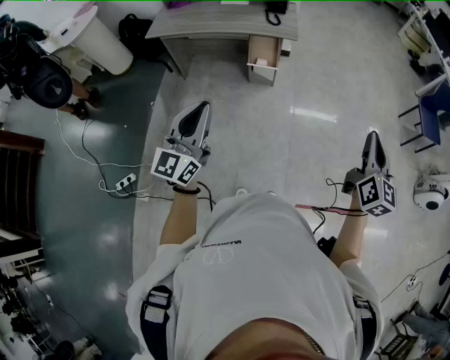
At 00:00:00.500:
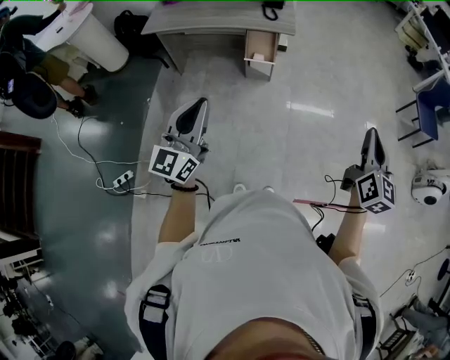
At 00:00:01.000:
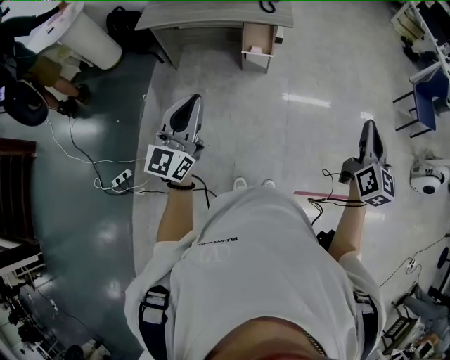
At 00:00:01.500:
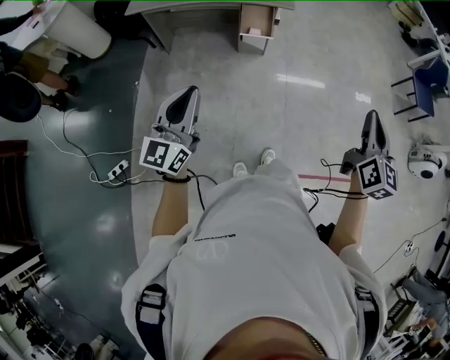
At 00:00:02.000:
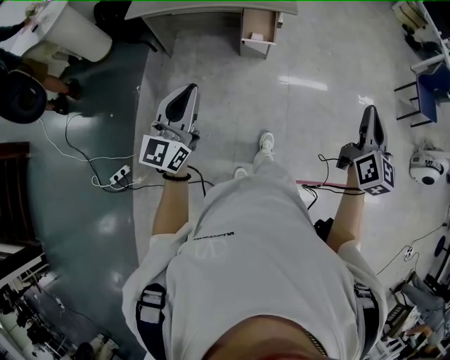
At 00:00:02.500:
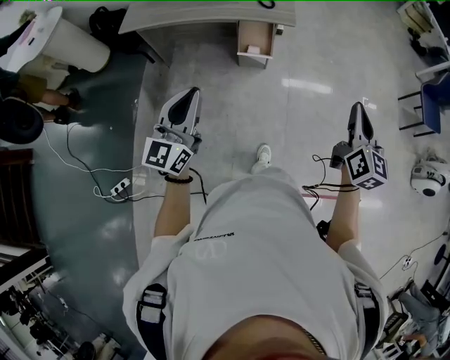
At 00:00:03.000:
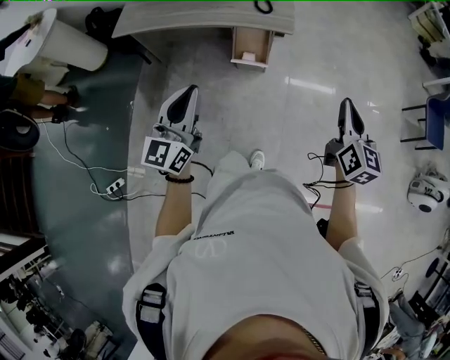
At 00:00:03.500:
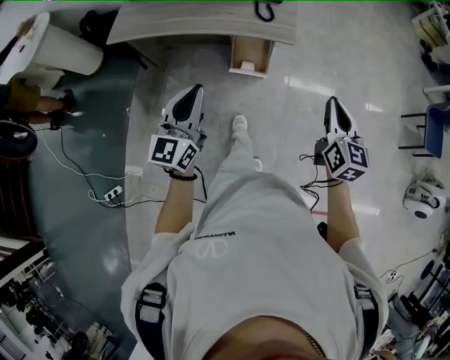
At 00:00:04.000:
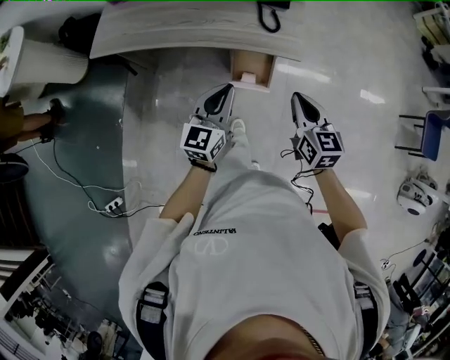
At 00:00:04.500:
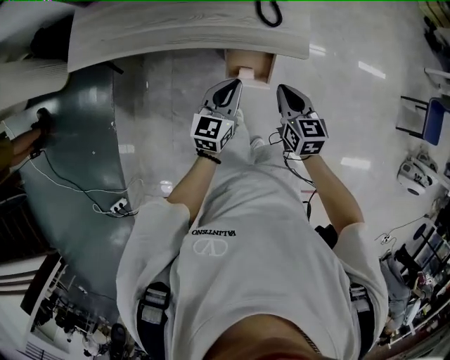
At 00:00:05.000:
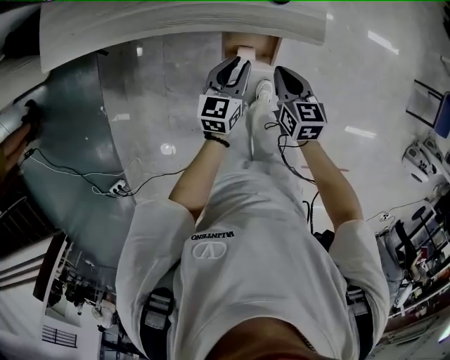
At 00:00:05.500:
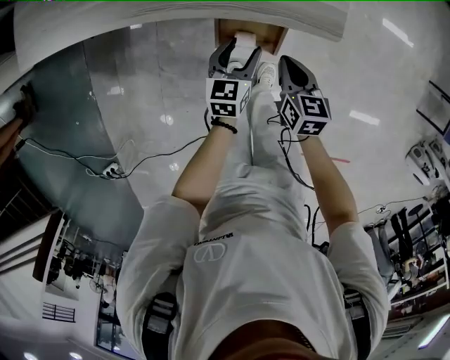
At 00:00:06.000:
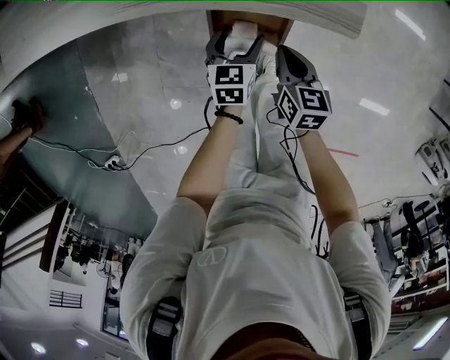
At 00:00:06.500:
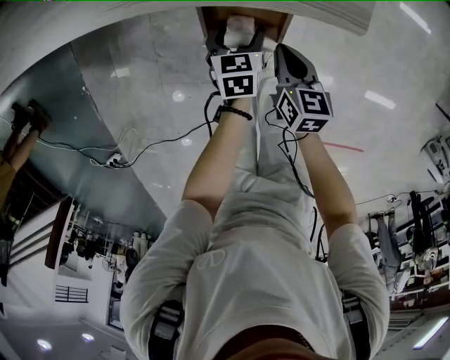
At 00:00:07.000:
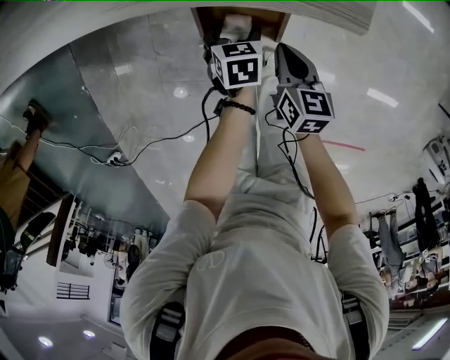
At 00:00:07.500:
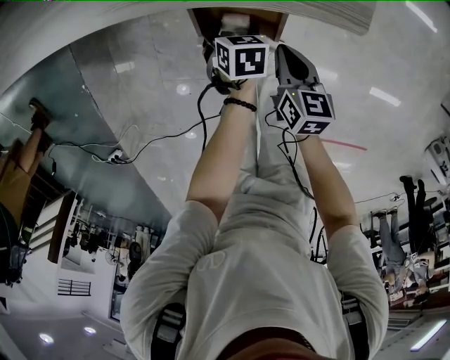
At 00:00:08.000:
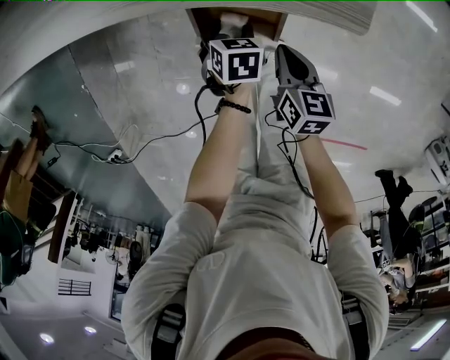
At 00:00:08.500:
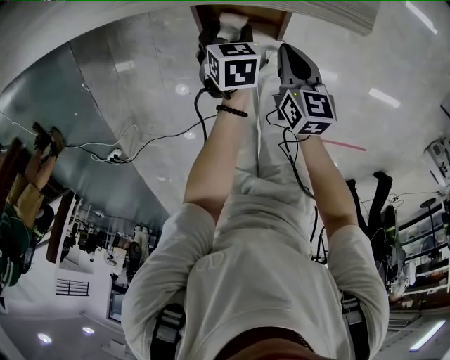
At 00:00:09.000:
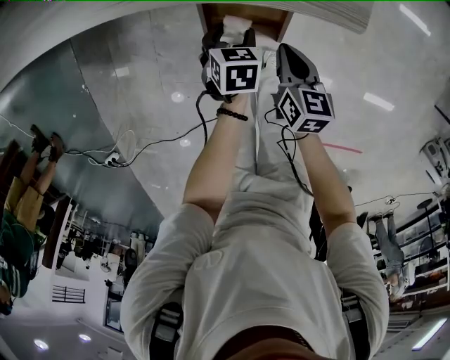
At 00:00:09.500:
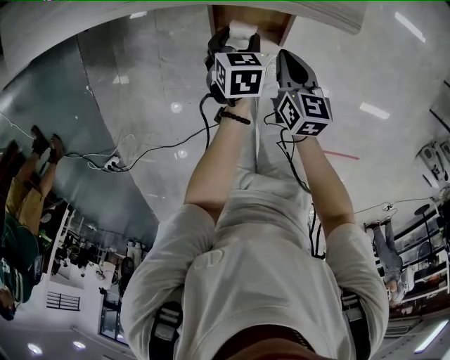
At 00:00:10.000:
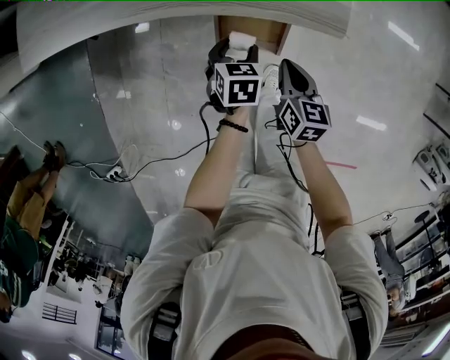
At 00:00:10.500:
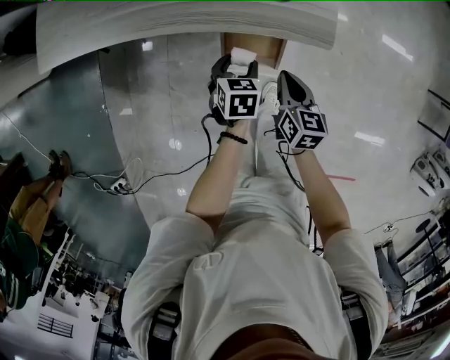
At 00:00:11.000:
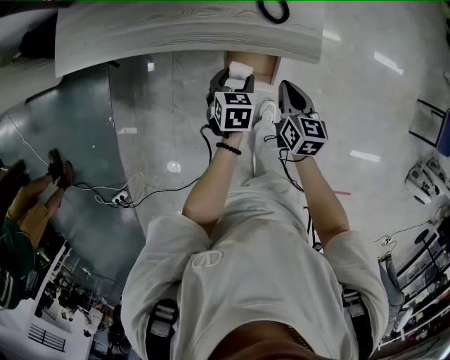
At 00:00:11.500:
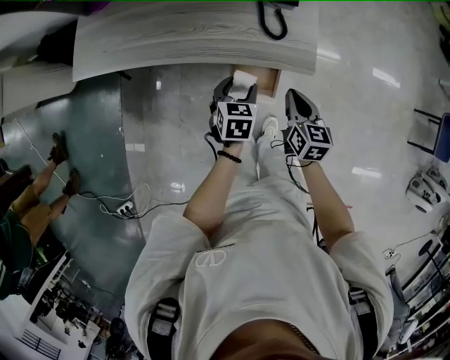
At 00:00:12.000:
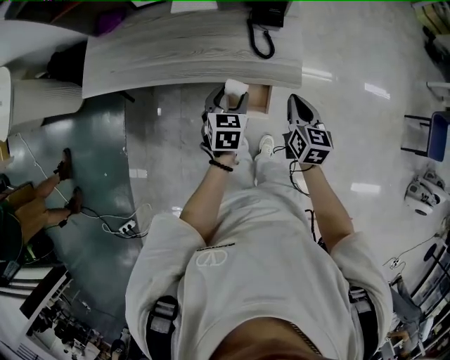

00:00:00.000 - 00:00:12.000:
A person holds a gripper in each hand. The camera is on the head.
00:00:00.000 - 00:00:02.000: Both grippers move to the left, some 10 cm.
00:00:02.000 - 00:00:04.000: The two grippers travel together, forward, about 40 cm. The right gripper moves downward, some 20 cm, and turns by about 40 degrees.
00:00:04.000 - 00:00:06.000: The grippers both shift downward by about 40 cm. The left gripper tilts its fingers some 40 degrees downward, and opens up, while the right gripper changes its angle by some 30 degrees.
00:00:06.000 - 00:00:08.000: The left gripper is displaced downward by approximately 5 cm, and changes its angle by about 30 degrees.
00:00:08.000 - 00:00:10.000: The two grippers go about 10 cm upward.
00:00:10.000 - 00:00:12.000: The two grippers go about 25 cm upward. The left gripper turns by roughly 20 degrees.

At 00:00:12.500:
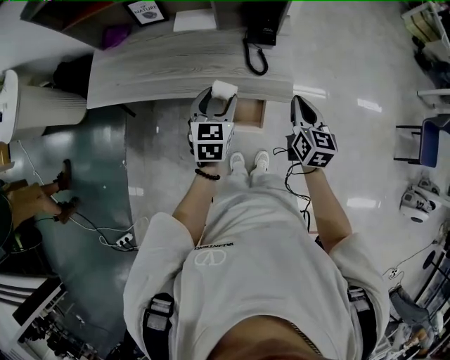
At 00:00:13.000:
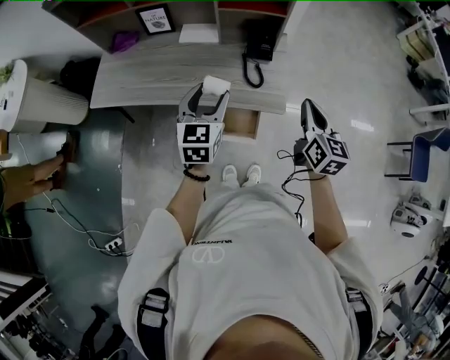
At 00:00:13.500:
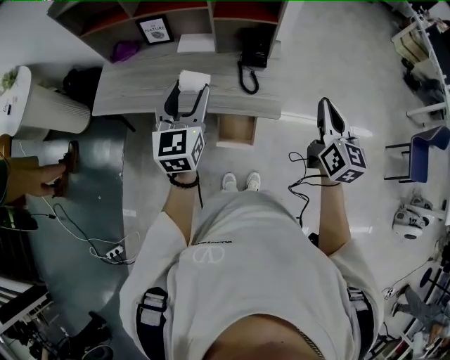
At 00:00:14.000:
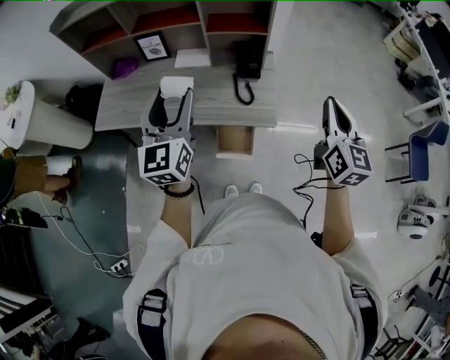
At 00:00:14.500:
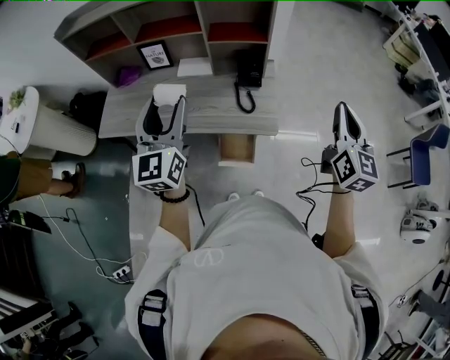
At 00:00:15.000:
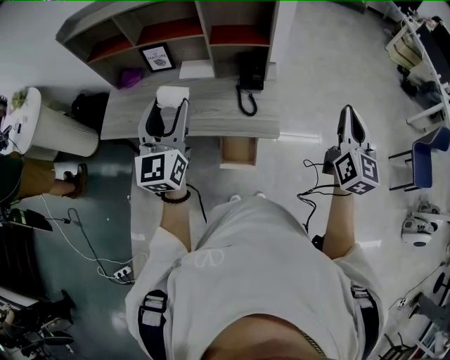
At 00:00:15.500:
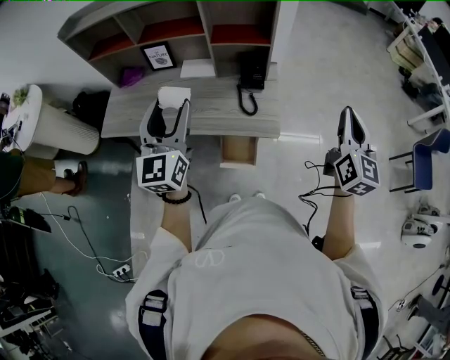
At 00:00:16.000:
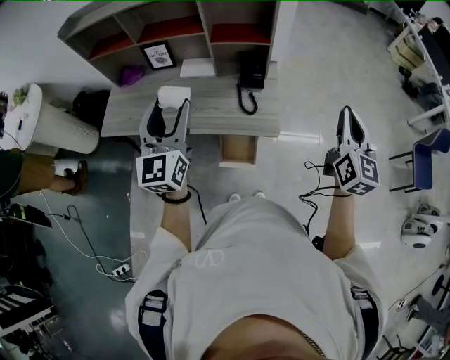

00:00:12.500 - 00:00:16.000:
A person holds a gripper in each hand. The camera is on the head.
00:00:12.500 - 00:00:14.500: The left gripper heads upward, covering roughly 25 cm, and tilts its fingers some 40 degrees upward. Meanwhile the right gripper is displaced upward and to the right by roughly 25 cm, and rotates some 20 degrees.
00:00:14.500 - 00:00:16.000: The grippers make only small movements.

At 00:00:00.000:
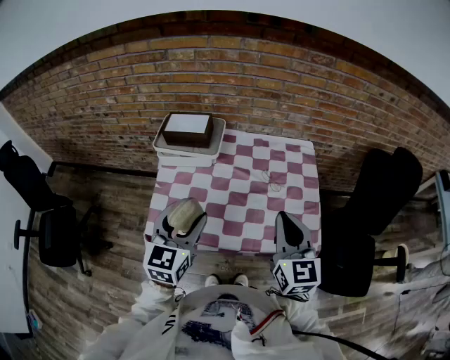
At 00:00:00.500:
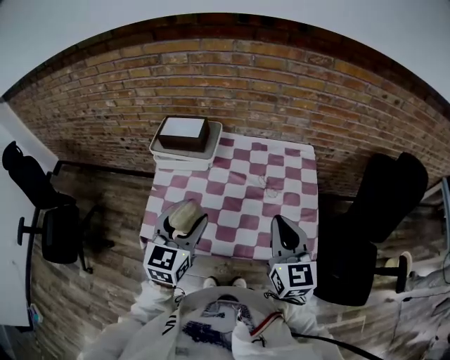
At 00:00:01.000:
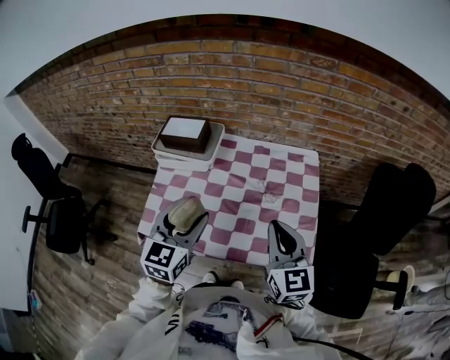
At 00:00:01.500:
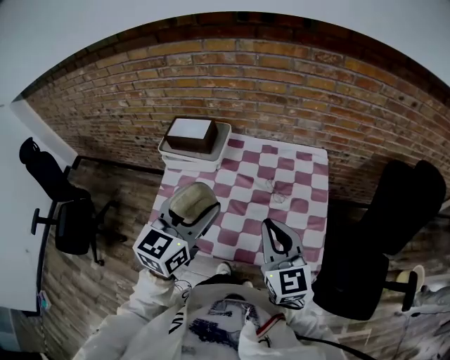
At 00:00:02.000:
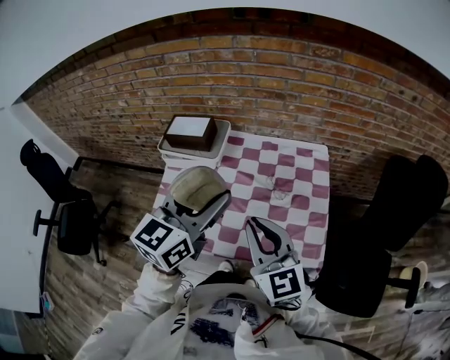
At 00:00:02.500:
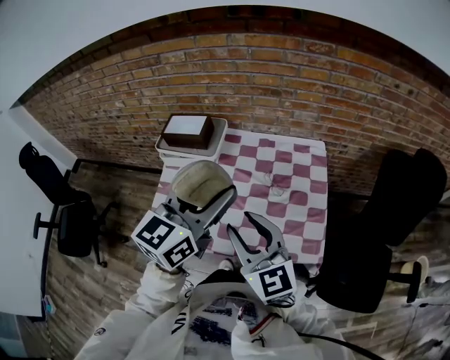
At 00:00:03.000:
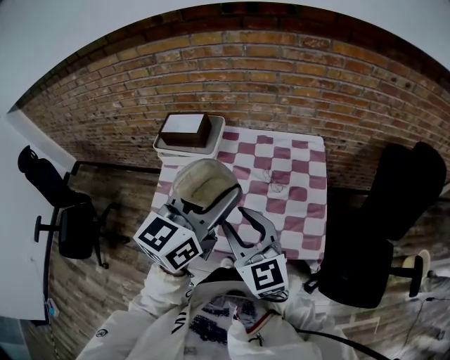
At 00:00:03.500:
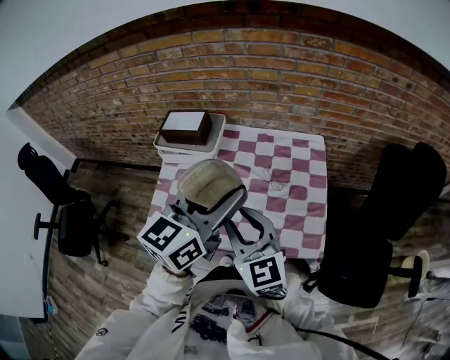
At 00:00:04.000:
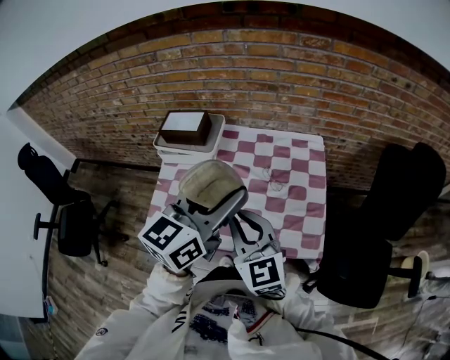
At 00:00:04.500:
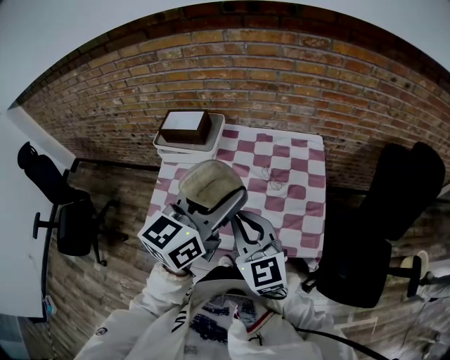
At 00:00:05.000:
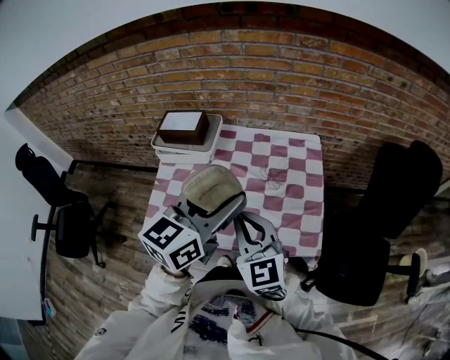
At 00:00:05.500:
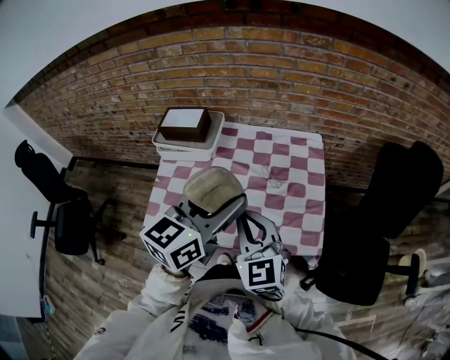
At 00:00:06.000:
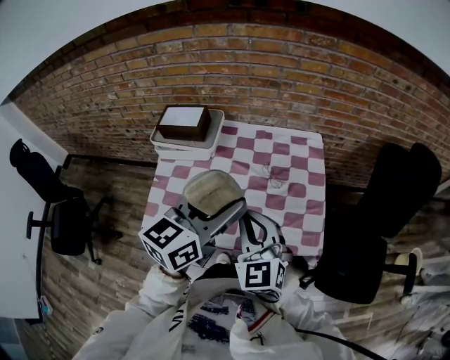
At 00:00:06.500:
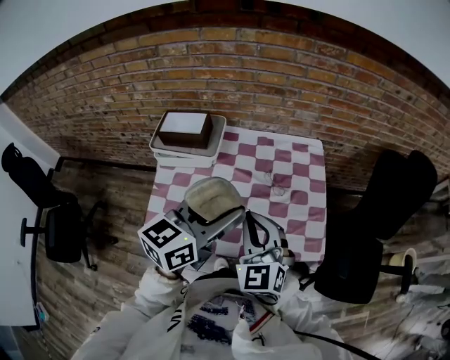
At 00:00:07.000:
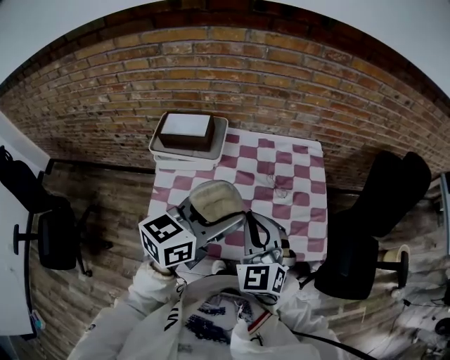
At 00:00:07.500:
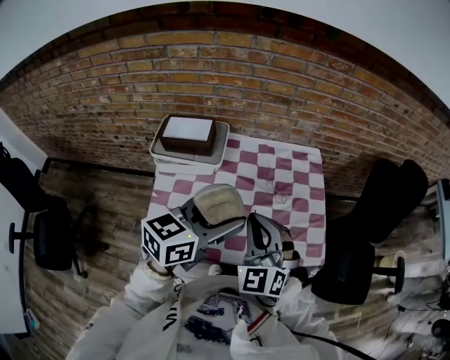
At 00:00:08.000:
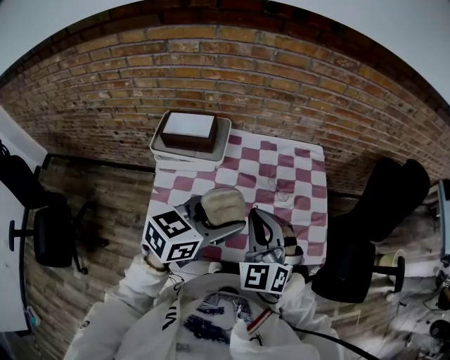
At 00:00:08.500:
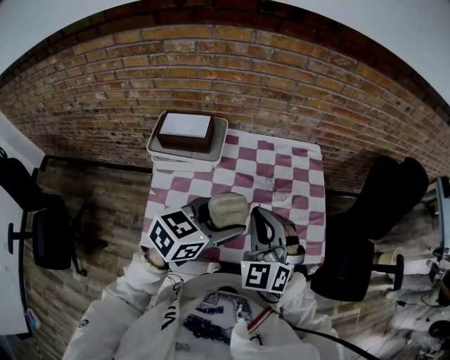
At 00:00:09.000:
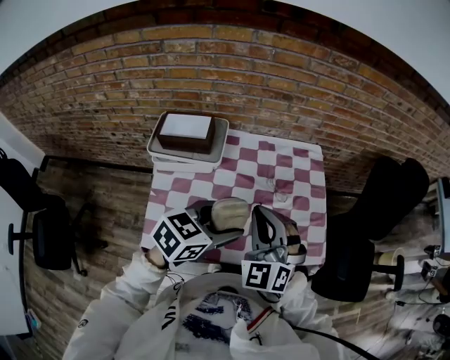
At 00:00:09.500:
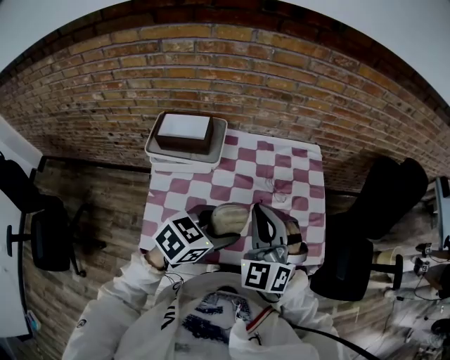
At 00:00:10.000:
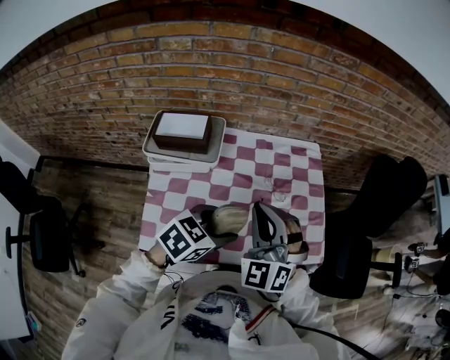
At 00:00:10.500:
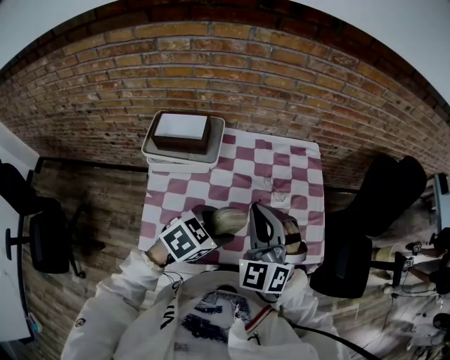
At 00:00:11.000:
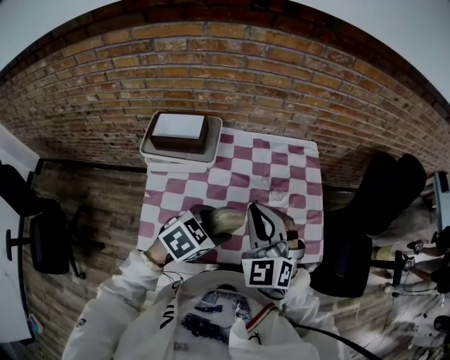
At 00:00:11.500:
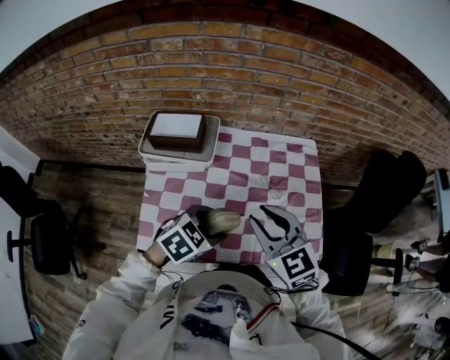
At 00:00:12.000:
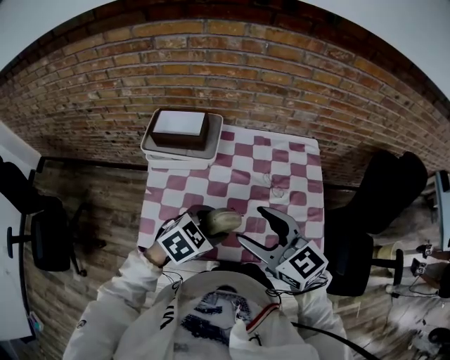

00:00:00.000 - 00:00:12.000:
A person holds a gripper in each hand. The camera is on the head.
00:00:00.000 - 00:00:02.000: The right gripper rotates roughly 20 degrees. Meanwhile the left gripper heads to the right, upward and forward, covering some 20 cm.
00:00:02.000 - 00:00:04.000: The right gripper opens and closes again.
00:00:04.000 - 00:00:06.000: The grippers move only a little.
00:00:06.000 - 00:00:08.000: The right gripper goes some 10 cm to the left, and swivels roughly 20 degrees, while the left gripper is displaced to the left and downward by some 10 cm, and turns by some 20 degrees.
00:00:08.000 - 00:00:10.000: The left gripper travels downward by roughly 10 cm, and rotates about 20 degrees.
00:00:10.000 - 00:00:12.000: The right gripper shifts some 5 cm backward, swivels approximately 60 degrees, and opens.
